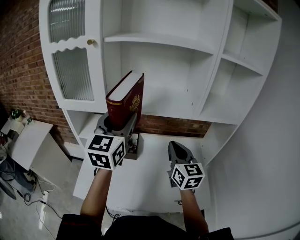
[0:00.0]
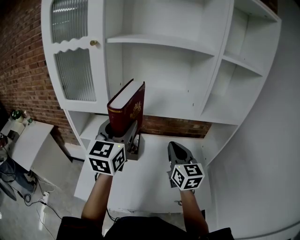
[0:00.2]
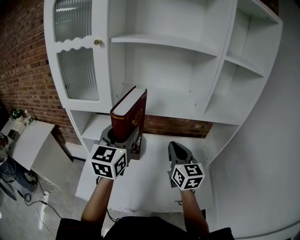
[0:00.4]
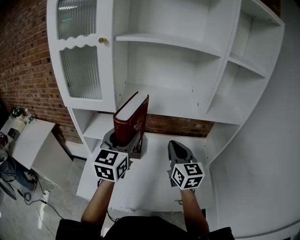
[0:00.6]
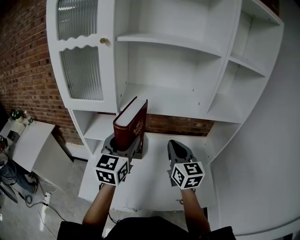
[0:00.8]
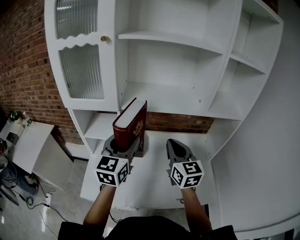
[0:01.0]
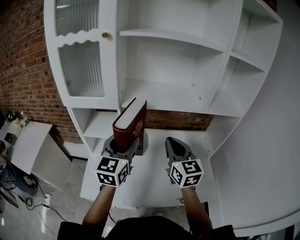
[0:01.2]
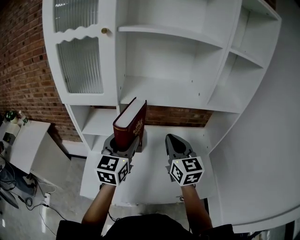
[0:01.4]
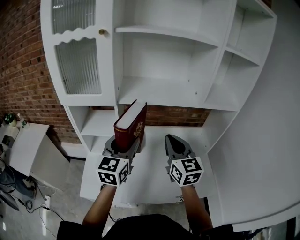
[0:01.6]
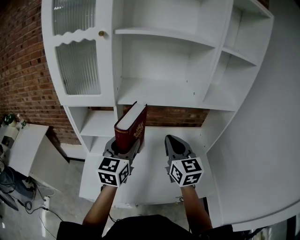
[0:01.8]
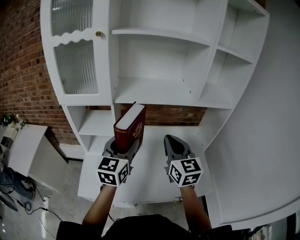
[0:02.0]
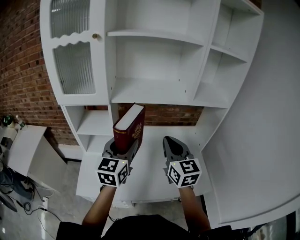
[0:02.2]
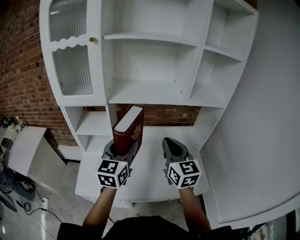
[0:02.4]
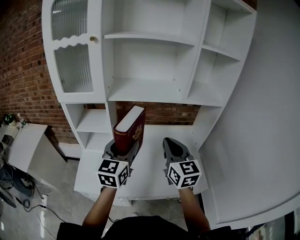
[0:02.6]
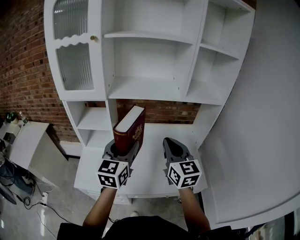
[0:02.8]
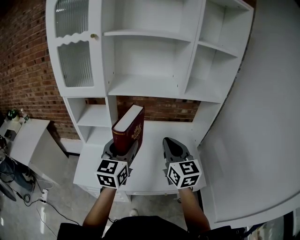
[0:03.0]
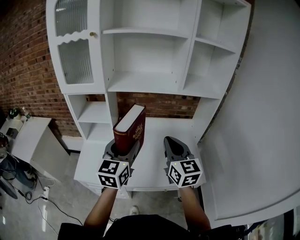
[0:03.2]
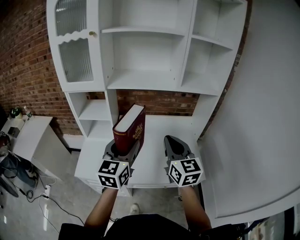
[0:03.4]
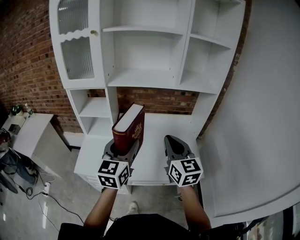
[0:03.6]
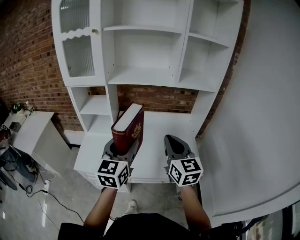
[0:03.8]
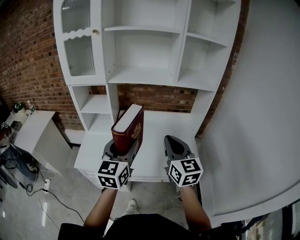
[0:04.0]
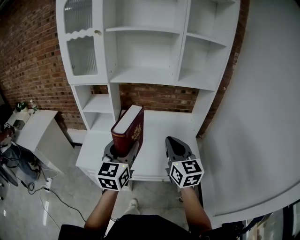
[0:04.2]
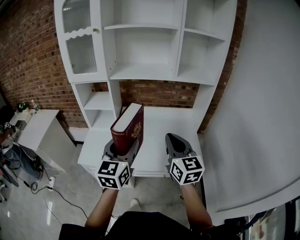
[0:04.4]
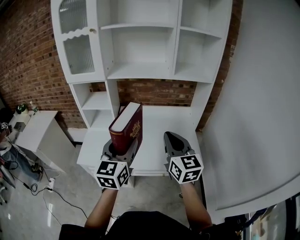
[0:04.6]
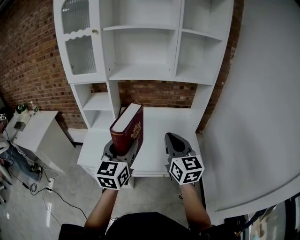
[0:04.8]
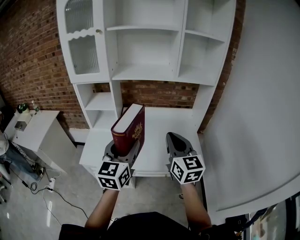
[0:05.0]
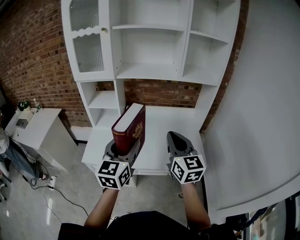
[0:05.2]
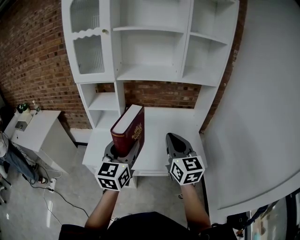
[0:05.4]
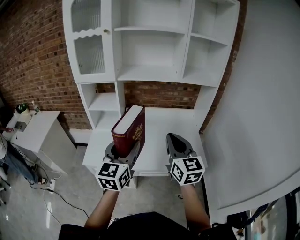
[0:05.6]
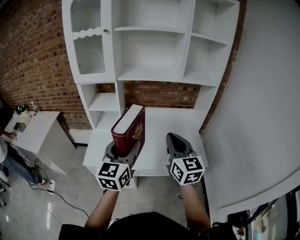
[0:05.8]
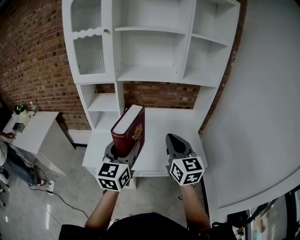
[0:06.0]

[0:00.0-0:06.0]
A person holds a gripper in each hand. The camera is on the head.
0:00.0 to 0:01.6: The right gripper shifts some 5 cm to the left. Meanwhile the left gripper heads downward, covering about 15 cm.
0:01.6 to 0:03.0: The two grippers go roughly 15 cm backward and to the right.
0:03.0 to 0:04.4: The grippers both shift backward by roughly 15 cm.
0:04.4 to 0:06.0: Both grippers move to the left, about 5 cm.

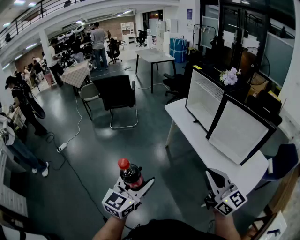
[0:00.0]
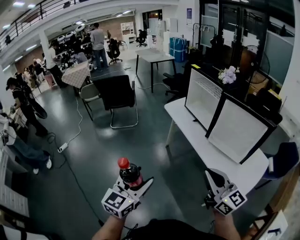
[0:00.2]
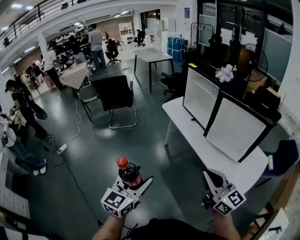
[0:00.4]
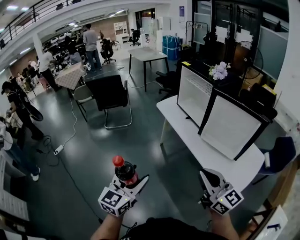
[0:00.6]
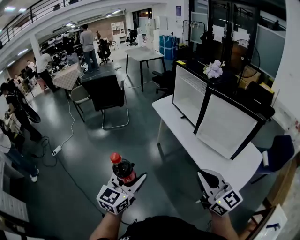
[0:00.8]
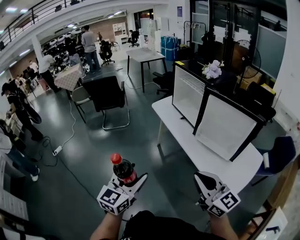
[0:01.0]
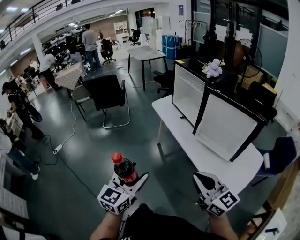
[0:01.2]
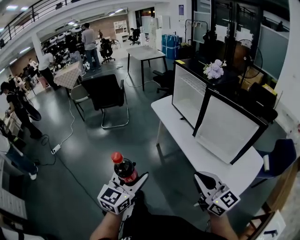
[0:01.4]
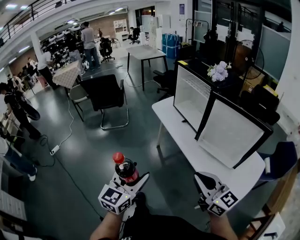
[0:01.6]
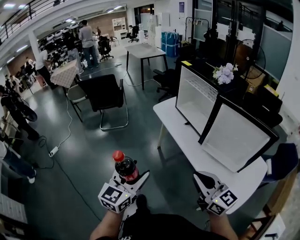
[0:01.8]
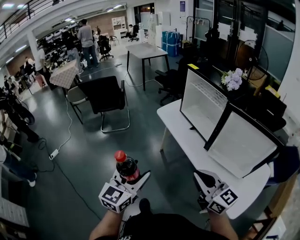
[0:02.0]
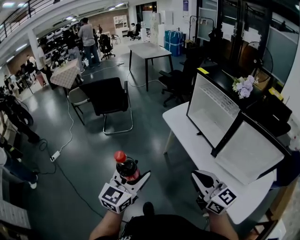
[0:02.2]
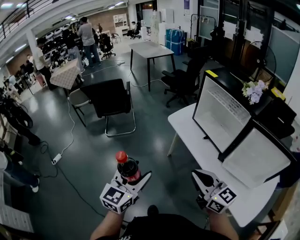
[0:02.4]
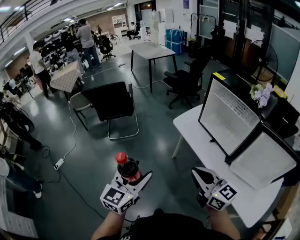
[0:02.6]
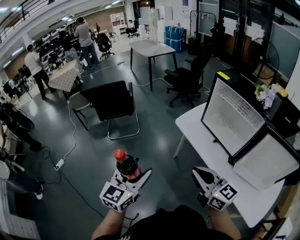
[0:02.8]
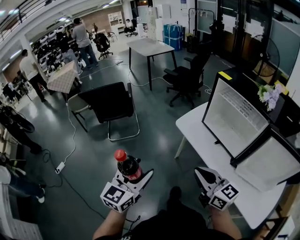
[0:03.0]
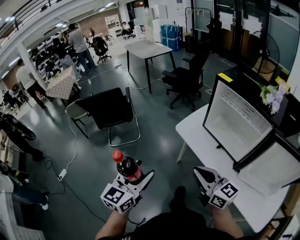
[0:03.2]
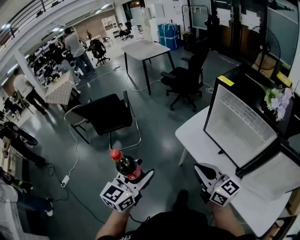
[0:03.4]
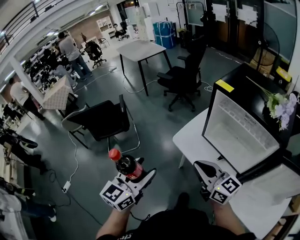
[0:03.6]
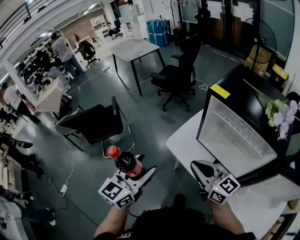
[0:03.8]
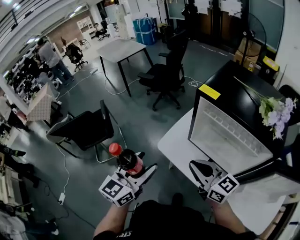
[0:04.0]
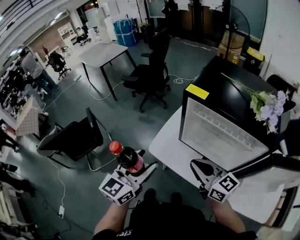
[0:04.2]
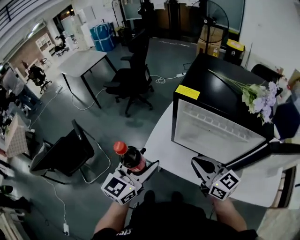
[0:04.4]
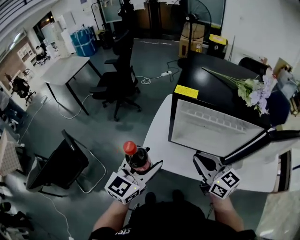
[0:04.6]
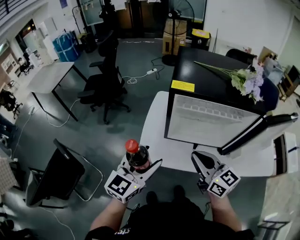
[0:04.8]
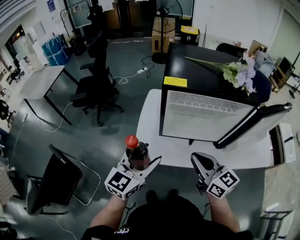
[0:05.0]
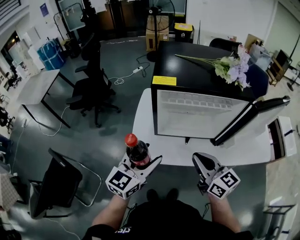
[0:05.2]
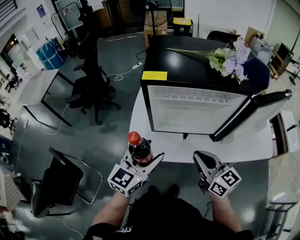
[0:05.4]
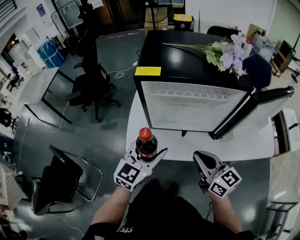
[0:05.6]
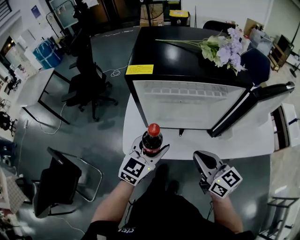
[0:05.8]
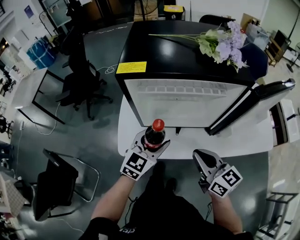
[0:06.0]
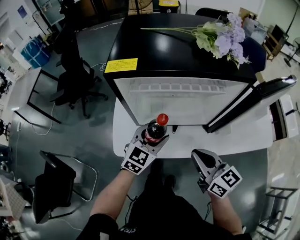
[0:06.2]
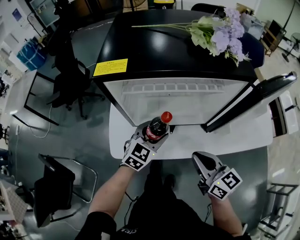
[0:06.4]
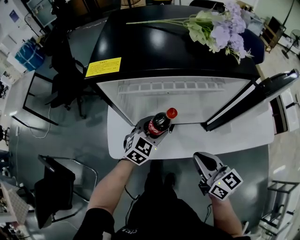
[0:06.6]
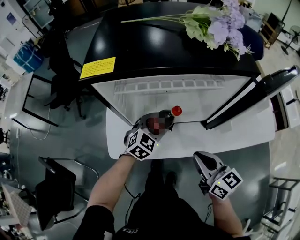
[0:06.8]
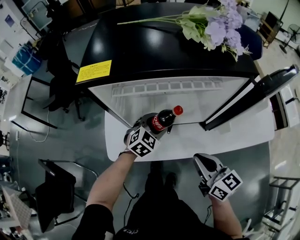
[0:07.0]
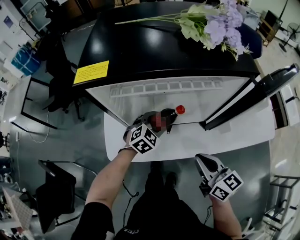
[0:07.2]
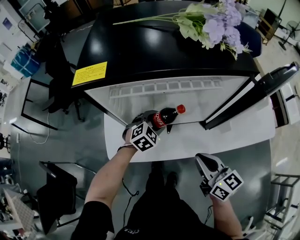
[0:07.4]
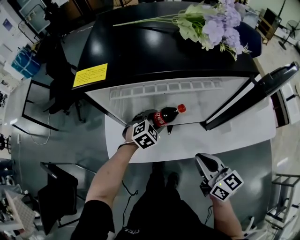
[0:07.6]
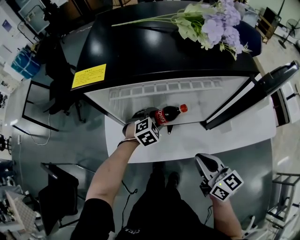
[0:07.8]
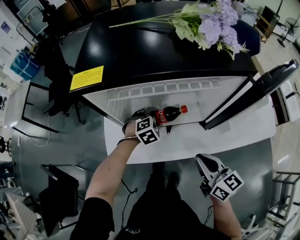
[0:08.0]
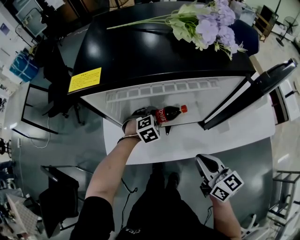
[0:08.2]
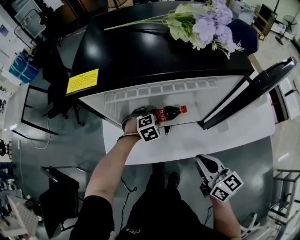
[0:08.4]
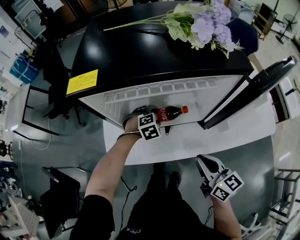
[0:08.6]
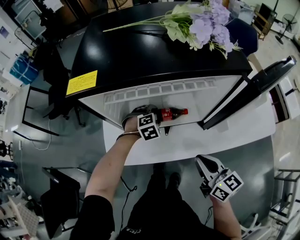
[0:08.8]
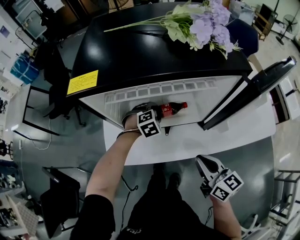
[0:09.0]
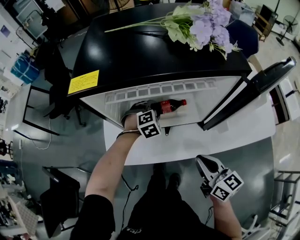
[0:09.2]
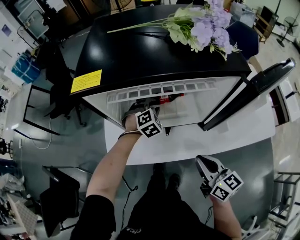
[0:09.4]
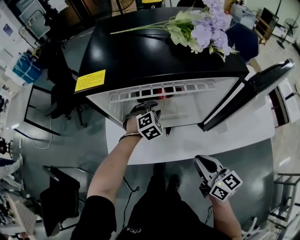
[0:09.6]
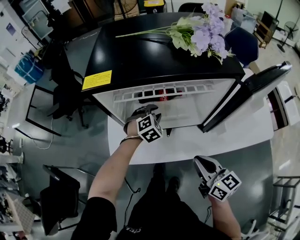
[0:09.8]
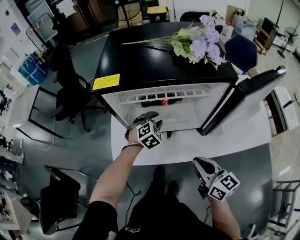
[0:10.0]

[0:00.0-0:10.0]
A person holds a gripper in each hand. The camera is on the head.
0:00.0 to 0:01.4: Both grippers move to the right, about 10 cm.
0:01.4 to 0:02.8: The pair of grippers is taken forward and to the left, some 40 cm.
0:02.8 to 0:04.2: Both grippers move forward and to the right, about 40 cm. The left gripper changes its angle by roughly 30 degrees.
0:04.2 to 0:05.8: The right gripper changes place by approximately 10 cm, and swivels some 40 degrees; the left gripper ends up approximately 20 cm from where it was, and swivels about 40 degrees.
0:05.8 to 0:07.2: The right gripper moves downward and to the right, some 10 cm; the left gripper moves downward and forward, approximately 25 cm, and changes its angle by about 30 degrees.
0:07.2 to 0:08.6: The left gripper is displaced downward by about 5 cm, and swivels approximately 30 degrees.
0:08.6 to 0:10.0: The left gripper goes some 10 cm upward, changes its angle by roughly 20 degrees, and closes.

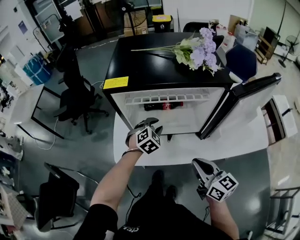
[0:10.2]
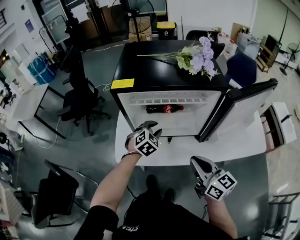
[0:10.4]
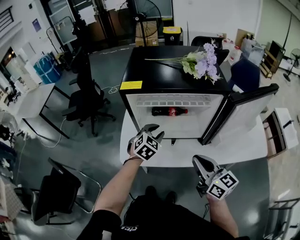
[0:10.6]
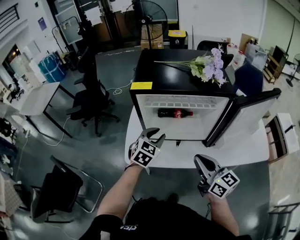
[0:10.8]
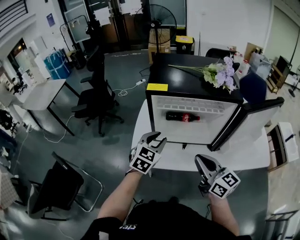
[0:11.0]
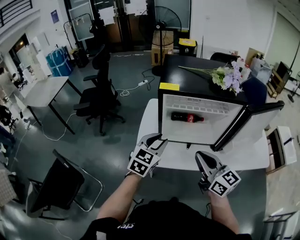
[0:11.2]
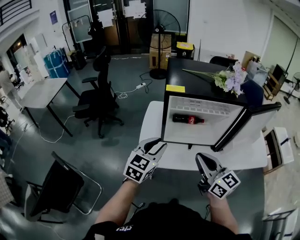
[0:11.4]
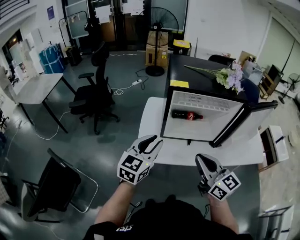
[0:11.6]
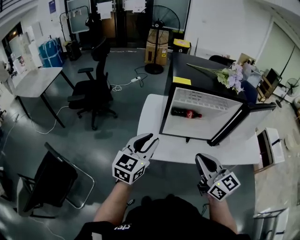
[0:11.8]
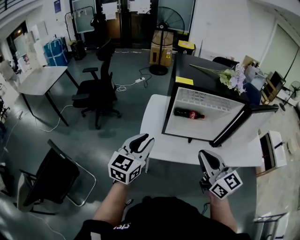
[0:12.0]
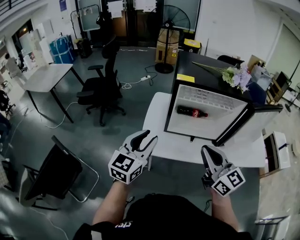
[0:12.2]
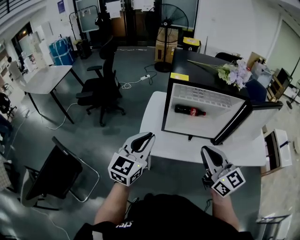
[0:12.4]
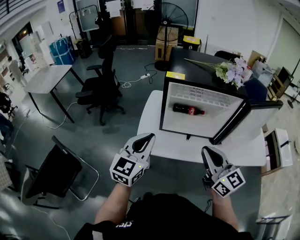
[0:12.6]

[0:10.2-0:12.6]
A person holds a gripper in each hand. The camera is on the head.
0:10.2 to 0:11.4: The right gripper moves to the left and upward, some 20 cm; the left gripper goes about 30 cm upward, to the left and backward, and changes its angle by roughly 40 degrees.
0:11.4 to 0:12.6: The left gripper travels backward by about 5 cm, reaches some 10 cm to the left, then returns, and closes up, while the right gripper changes place by roughly 5 cm.

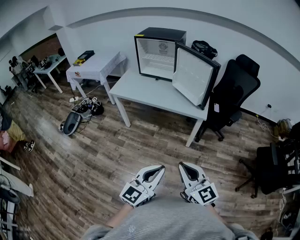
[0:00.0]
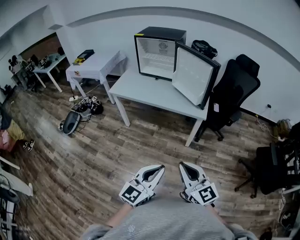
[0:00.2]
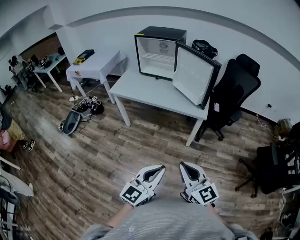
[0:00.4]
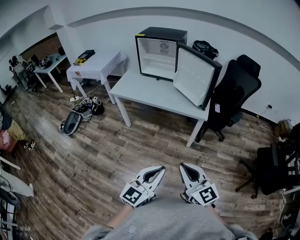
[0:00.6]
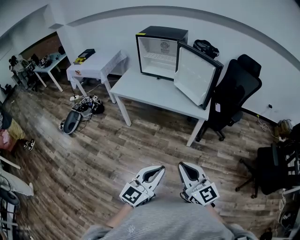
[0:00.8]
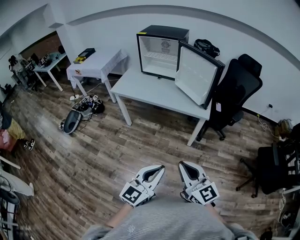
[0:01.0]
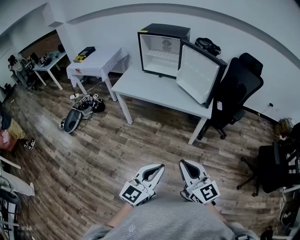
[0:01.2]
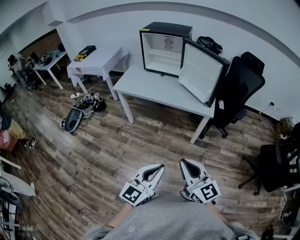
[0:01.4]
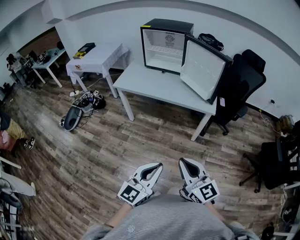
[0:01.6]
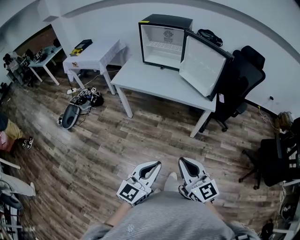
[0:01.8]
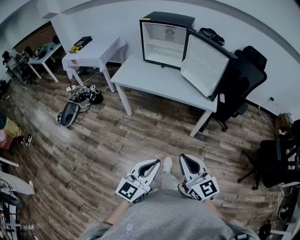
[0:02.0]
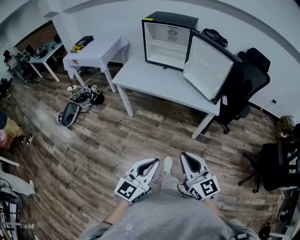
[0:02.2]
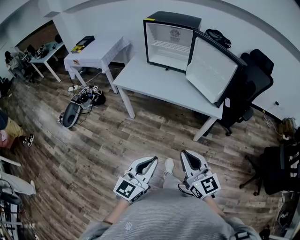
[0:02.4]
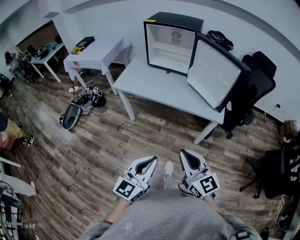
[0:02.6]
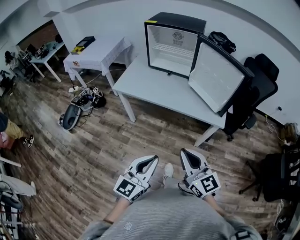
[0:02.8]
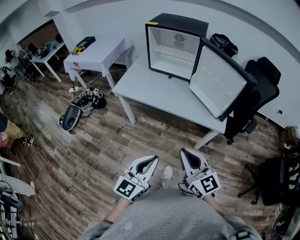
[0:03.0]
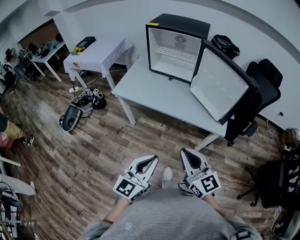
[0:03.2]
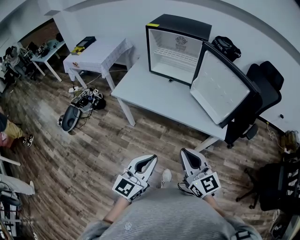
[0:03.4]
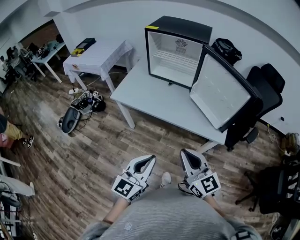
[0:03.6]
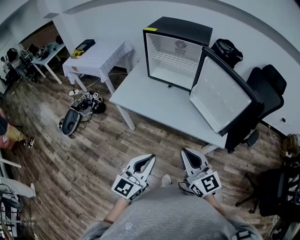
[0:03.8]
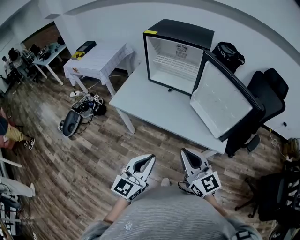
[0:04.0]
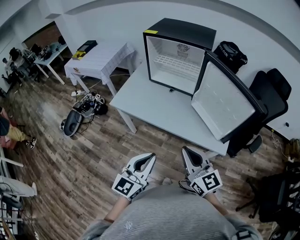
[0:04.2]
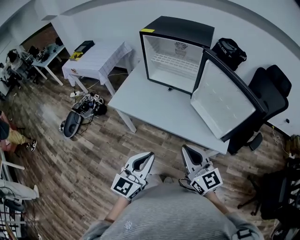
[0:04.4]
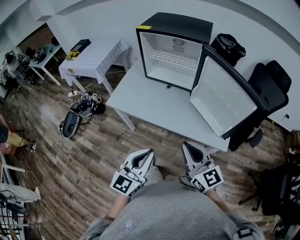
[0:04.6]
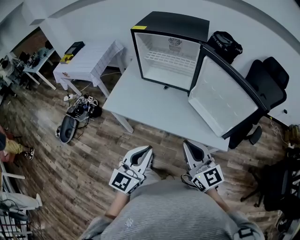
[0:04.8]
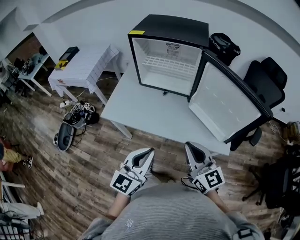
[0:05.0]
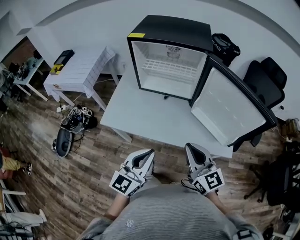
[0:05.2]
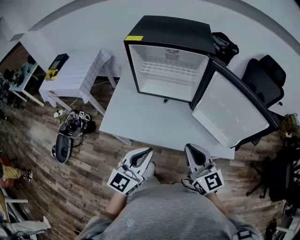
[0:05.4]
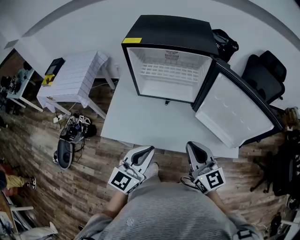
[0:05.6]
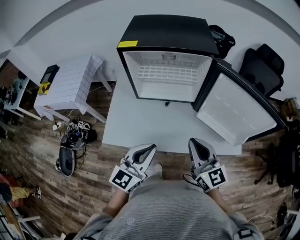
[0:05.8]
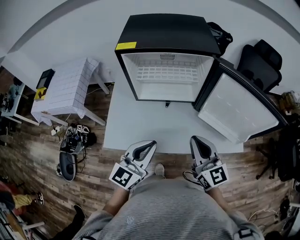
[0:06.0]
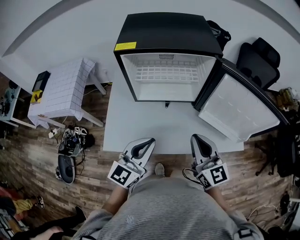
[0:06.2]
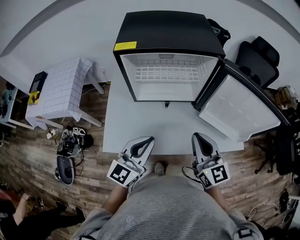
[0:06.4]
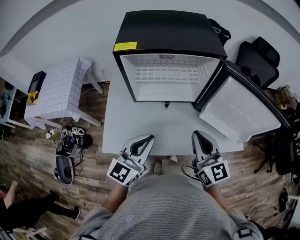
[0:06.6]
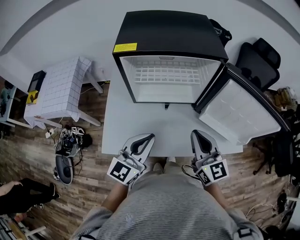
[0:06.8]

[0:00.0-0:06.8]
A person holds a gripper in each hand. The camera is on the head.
0:00.0 to 0:01.4: The right gripper ends up some 5 cm from where it was, while the left gripper heads to the left, covering approximately 5 cm.
0:01.4 to 0:02.8: The right gripper moves forward, roughly 20 cm. Meanwhile the left gripper is displaced forward and to the left by some 20 cm.
0:02.8 to 0:04.0: Both grippers move forward, roughly 15 cm.
0:04.0 to 0:05.4: The two grippers go approximately 20 cm forward.
0:05.4 to 0:06.8: Both grippers move forward and to the left, about 15 cm.
